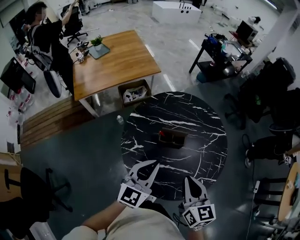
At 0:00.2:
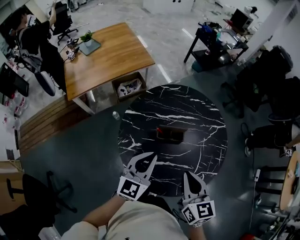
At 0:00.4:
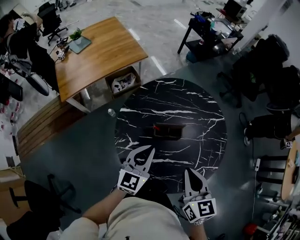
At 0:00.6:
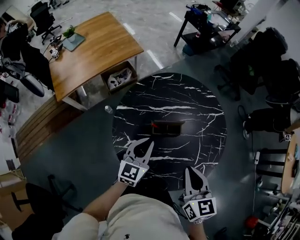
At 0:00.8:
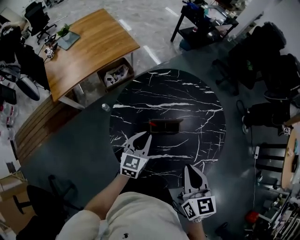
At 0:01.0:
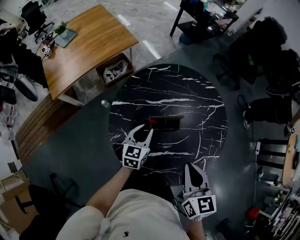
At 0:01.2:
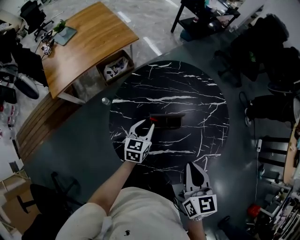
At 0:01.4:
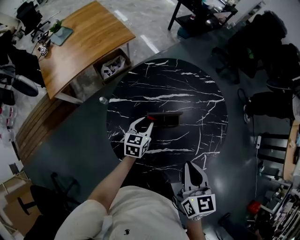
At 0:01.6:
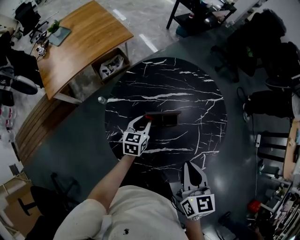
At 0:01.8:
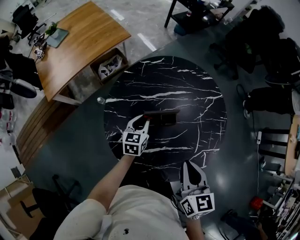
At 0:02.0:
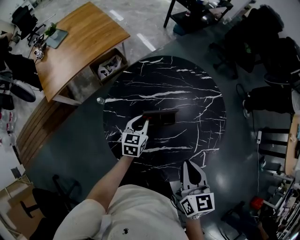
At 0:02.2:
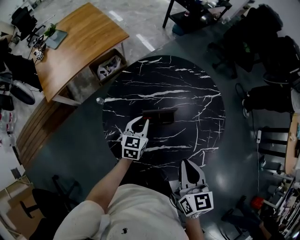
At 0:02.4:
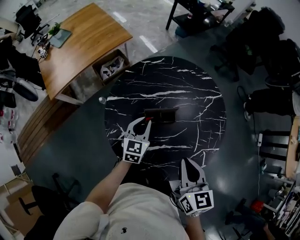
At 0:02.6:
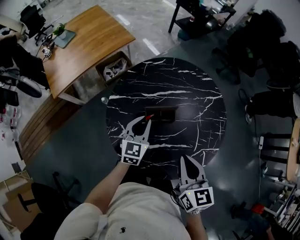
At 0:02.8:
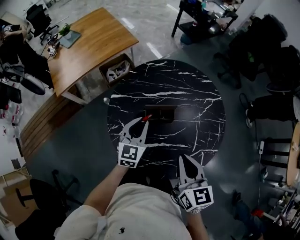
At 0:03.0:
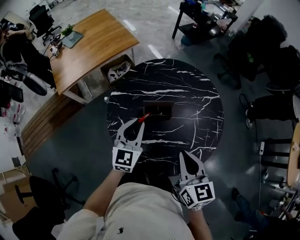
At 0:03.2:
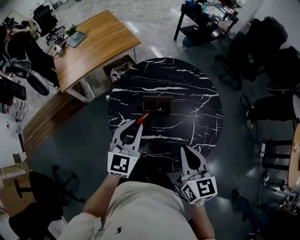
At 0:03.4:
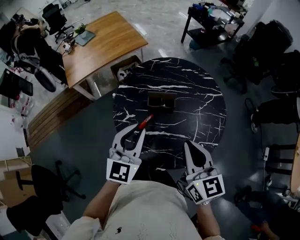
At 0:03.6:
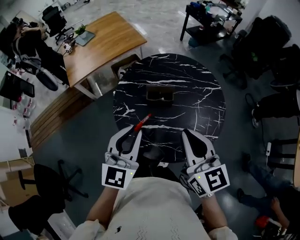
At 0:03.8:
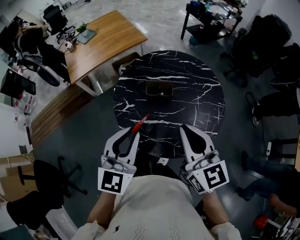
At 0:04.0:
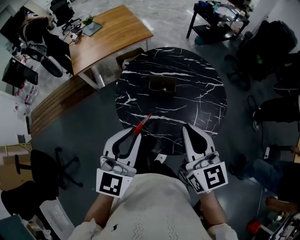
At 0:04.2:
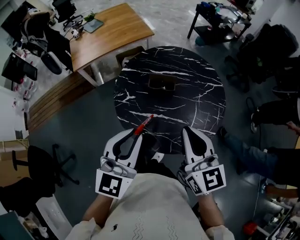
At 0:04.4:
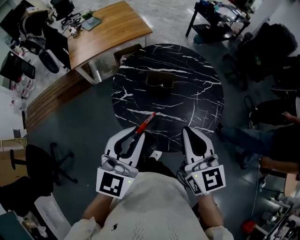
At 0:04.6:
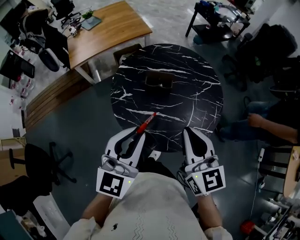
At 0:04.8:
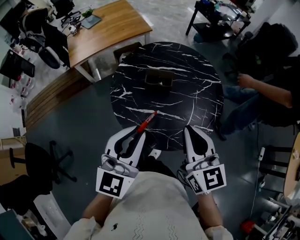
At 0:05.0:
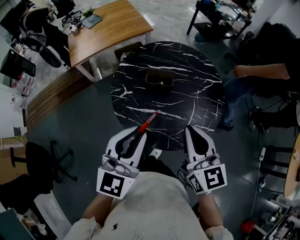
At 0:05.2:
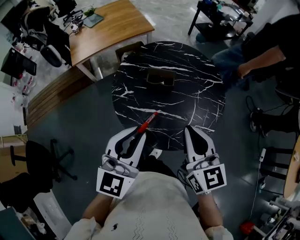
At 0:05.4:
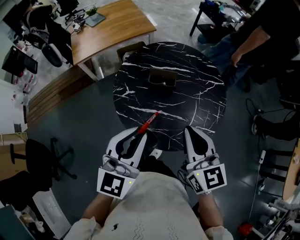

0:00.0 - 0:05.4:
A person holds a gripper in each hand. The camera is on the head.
0:00.0 - 0:01.4: The right gripper goes approximately 5 cm forward; the left gripper heads downward and forward, covering roughly 30 cm, swivels roughly 30 degrees, and opens up.
0:01.4 - 0:02.8: The left gripper is displaced upward and backward by about 15 cm, and turns by approximately 20 degrees.
0:02.8 - 0:04.0: The left gripper travels backward and upward by some 30 cm. Meanwhile the right gripper shifts about 15 cm upward and backward, and swivels some 20 degrees.
0:04.0 - 0:05.4: The grippers stay close to where they were, moving slightly.

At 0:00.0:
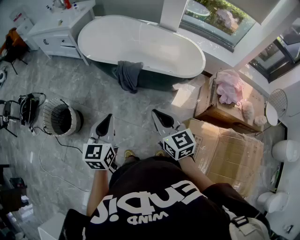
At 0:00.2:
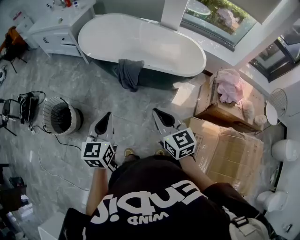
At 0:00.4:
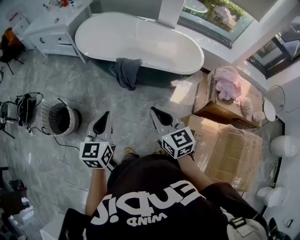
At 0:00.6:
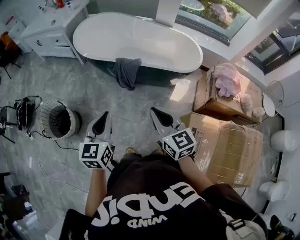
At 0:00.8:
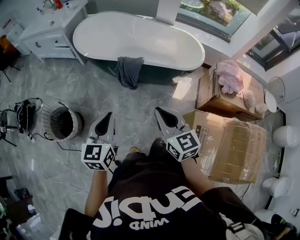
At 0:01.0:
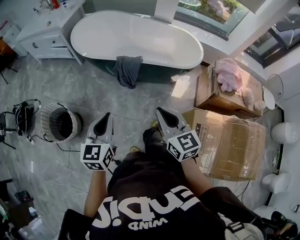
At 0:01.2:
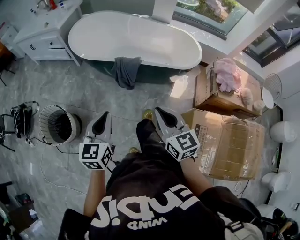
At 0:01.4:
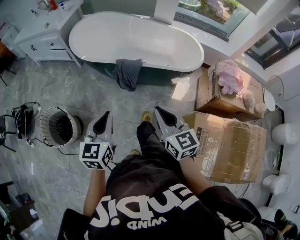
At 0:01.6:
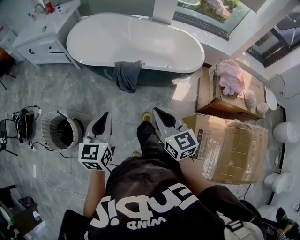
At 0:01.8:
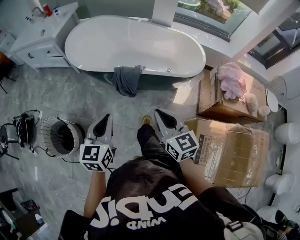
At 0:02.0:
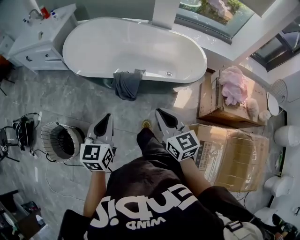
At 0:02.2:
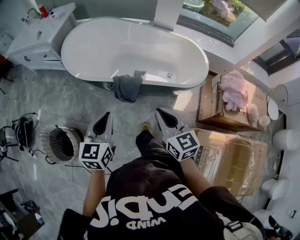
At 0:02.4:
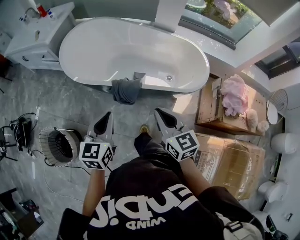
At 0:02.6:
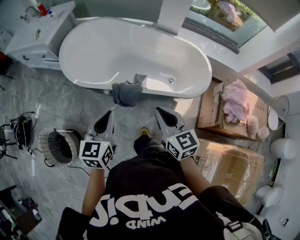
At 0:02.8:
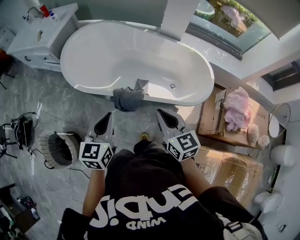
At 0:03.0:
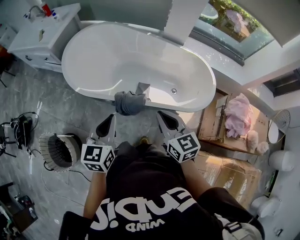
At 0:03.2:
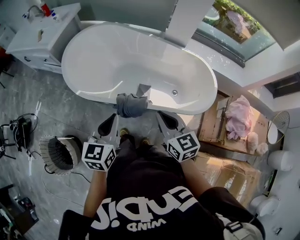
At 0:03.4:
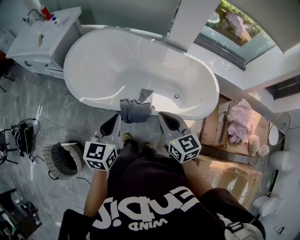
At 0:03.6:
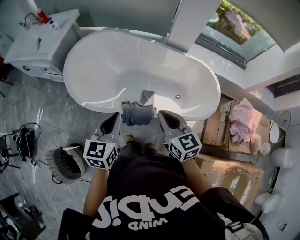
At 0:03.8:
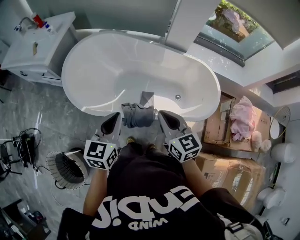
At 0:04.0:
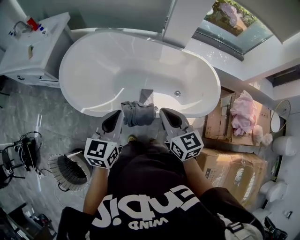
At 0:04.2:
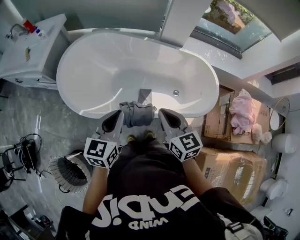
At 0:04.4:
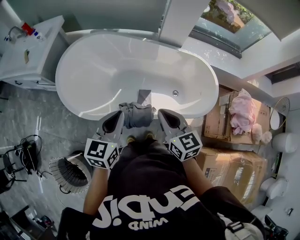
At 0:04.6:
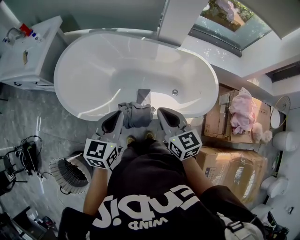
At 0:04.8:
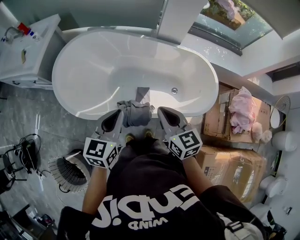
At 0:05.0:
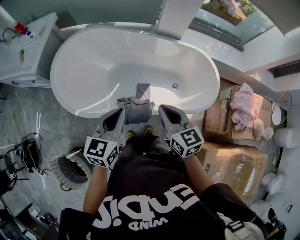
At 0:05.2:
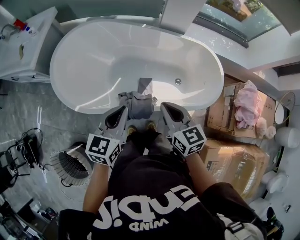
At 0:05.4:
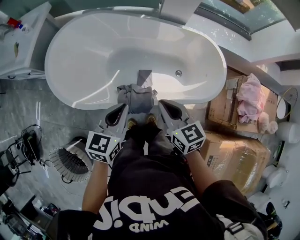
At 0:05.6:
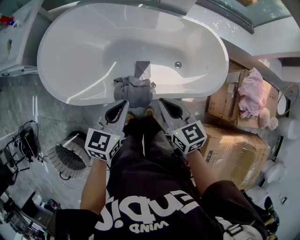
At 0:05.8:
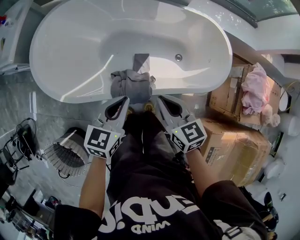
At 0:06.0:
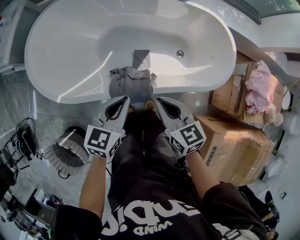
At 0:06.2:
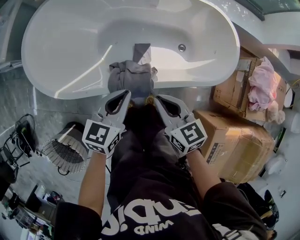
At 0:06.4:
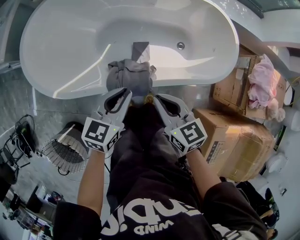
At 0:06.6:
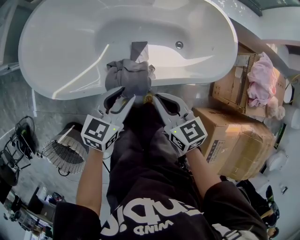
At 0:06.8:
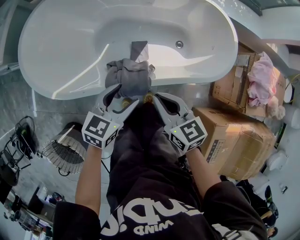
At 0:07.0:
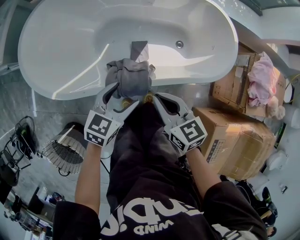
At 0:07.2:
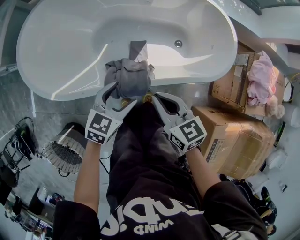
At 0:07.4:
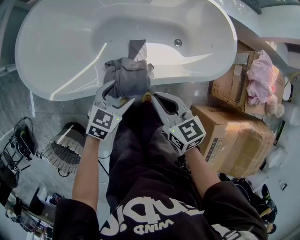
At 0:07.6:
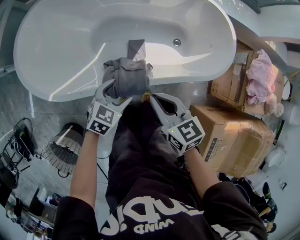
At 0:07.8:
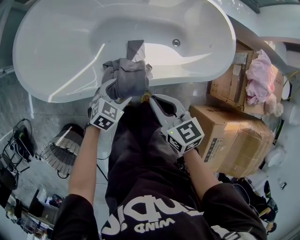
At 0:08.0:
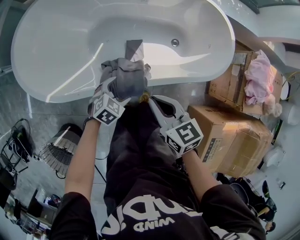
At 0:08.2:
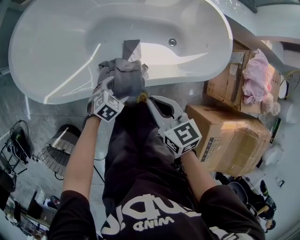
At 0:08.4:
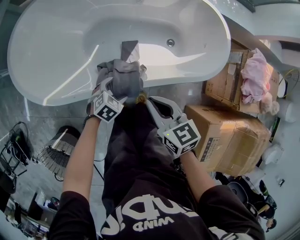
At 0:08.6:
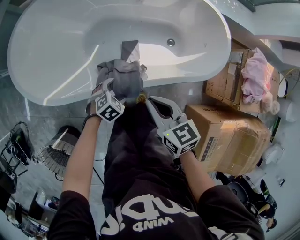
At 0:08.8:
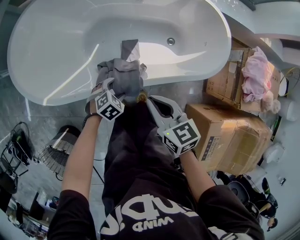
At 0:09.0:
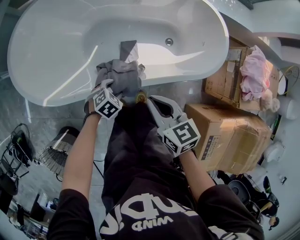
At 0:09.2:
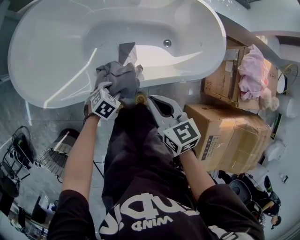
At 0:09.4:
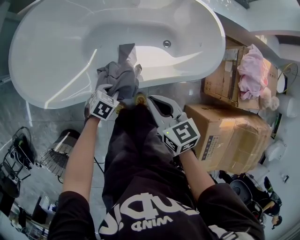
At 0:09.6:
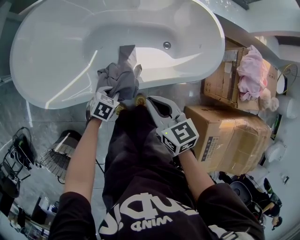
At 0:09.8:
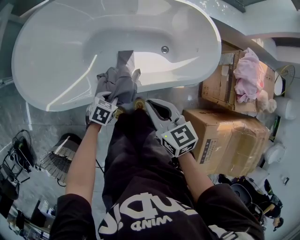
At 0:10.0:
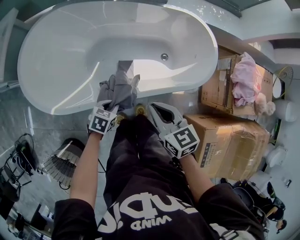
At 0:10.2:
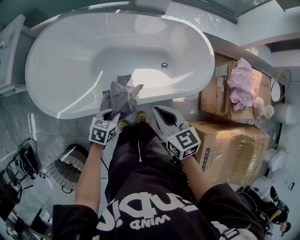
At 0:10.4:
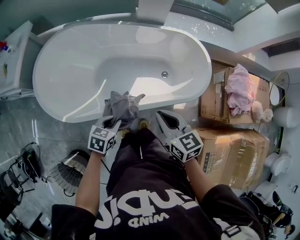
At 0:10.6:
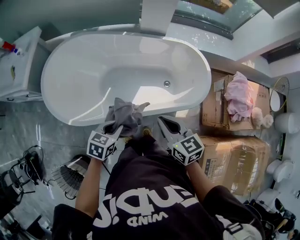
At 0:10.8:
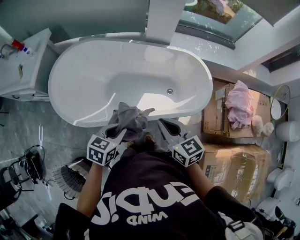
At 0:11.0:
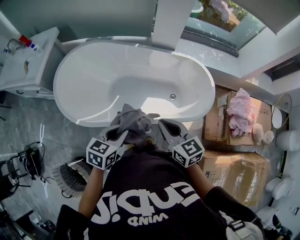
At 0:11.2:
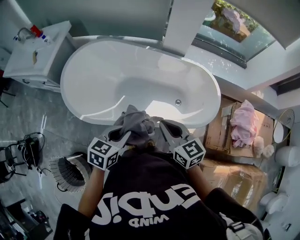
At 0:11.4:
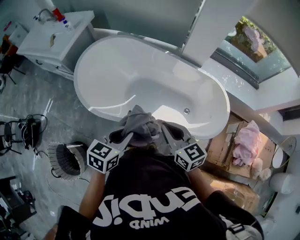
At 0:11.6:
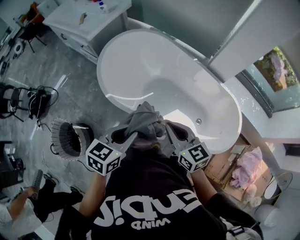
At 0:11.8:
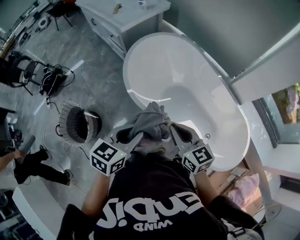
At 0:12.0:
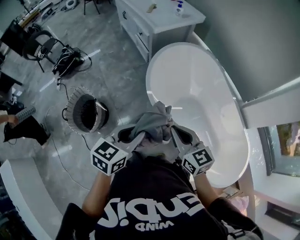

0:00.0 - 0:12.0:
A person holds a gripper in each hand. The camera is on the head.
0:00.0 - 0:01.6: The left gripper moves forward and to the left, roughly 10 cm. Meanwhile the right gripper goes approximately 5 cm forward.
0:01.6 - 0:03.0: The two grippers go roughly 30 cm forward.
0:03.0 - 0:04.4: The left gripper heads forward, covering approximately 15 cm. Meanwhile the right gripper travels forward and to the left by approximately 15 cm.
0:04.4 - 0:06.0: Both grippers move downward, about 15 cm.
0:06.0 - 0:07.6: The left gripper travels downward by roughly 15 cm, rotates about 30 degrees, and opens.
0:07.6 - 0:09.0: The left gripper goes roughly 10 cm downward, and rotates some 20 degrees.
0:09.0 - 0:10.4: The left gripper is displaced upward by approximately 20 cm, changes its angle by roughly 30 degrees, and closes. Meanwhile the right gripper shifts roughly 10 cm upward.
0:10.4 - 0:12.0: The right gripper shifts by about 30 cm, and turns by about 60 degrees; the left gripper is displaced upward by approximately 25 cm, and turns by approximately 60 degrees.

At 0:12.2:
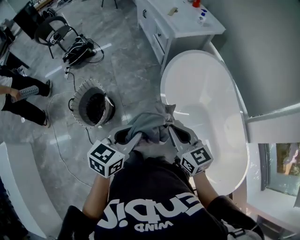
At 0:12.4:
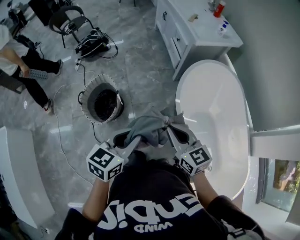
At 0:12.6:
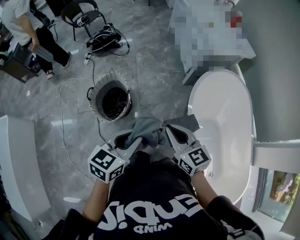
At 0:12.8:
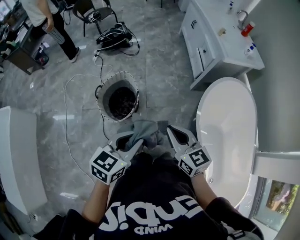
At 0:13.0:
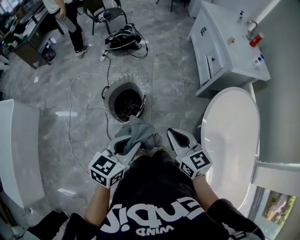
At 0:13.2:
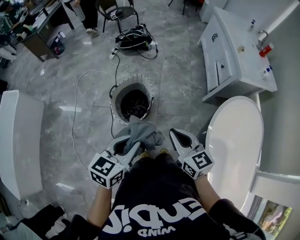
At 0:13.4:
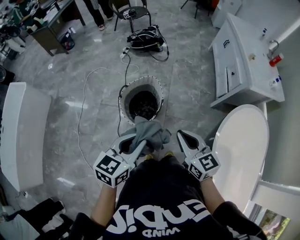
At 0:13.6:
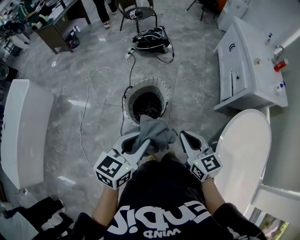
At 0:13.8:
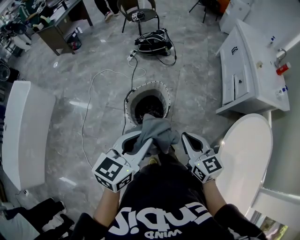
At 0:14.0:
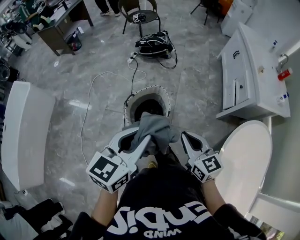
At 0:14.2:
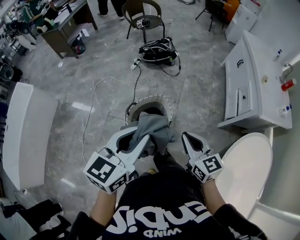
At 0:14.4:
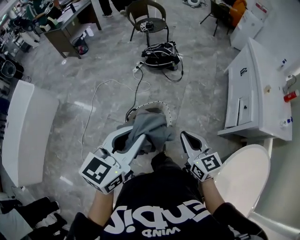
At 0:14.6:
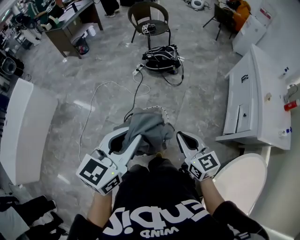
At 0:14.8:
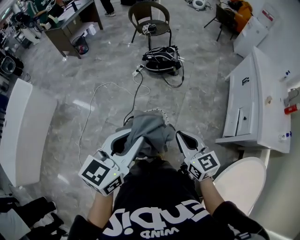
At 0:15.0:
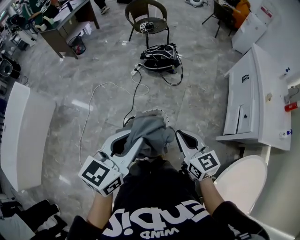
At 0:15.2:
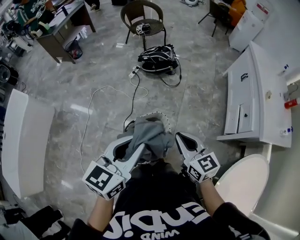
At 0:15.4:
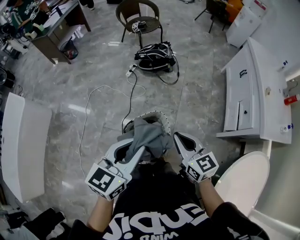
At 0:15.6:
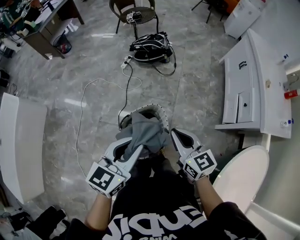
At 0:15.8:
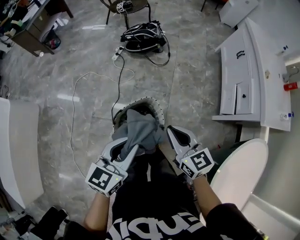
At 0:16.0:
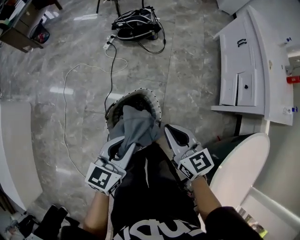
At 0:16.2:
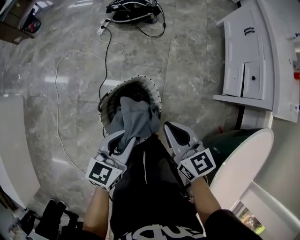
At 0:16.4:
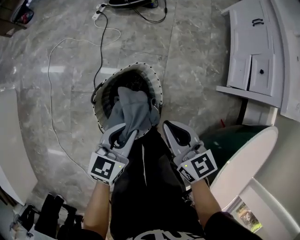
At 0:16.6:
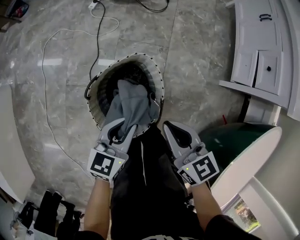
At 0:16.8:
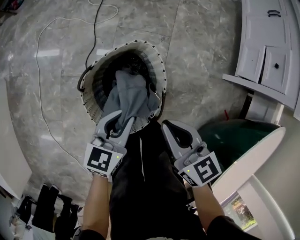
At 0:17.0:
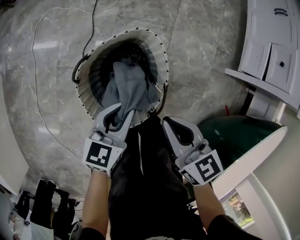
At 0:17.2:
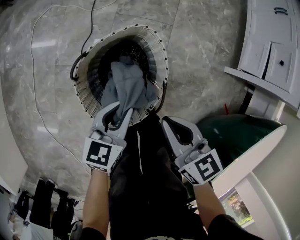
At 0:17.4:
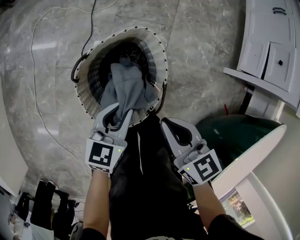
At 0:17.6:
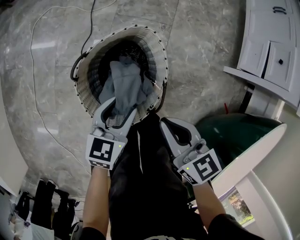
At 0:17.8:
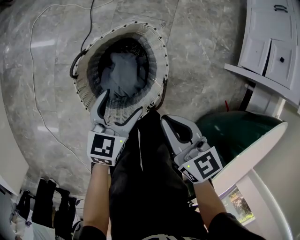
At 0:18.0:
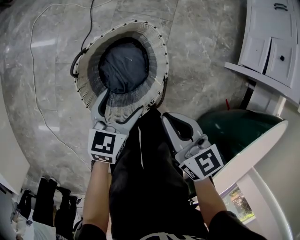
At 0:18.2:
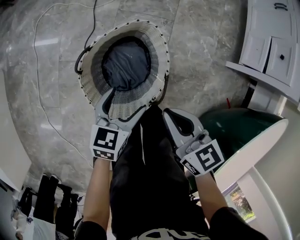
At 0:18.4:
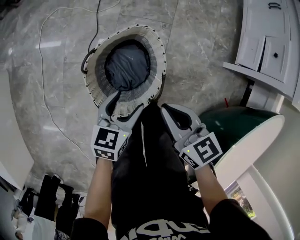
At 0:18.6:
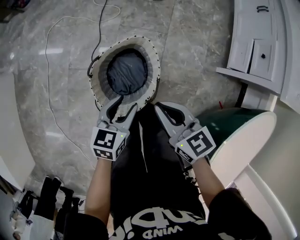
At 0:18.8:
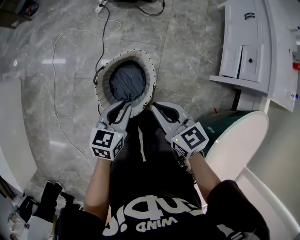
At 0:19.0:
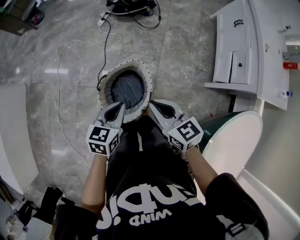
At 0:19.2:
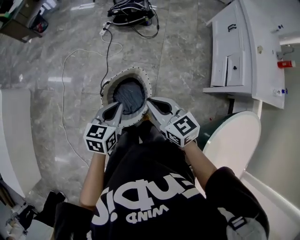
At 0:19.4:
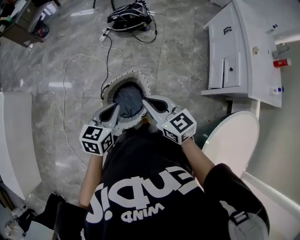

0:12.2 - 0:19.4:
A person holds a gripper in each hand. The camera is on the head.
0:12.2 - 0:13.6: The left gripper moves approximately 35 cm, and turns by about 30 degrees; the right gripper moves about 35 cm, and swivels approximately 30 degrees.
0:13.6 - 0:15.0: Both grippers travel together forward, approximately 25 cm.
0:15.0 - 0:16.6: The right gripper goes approximately 30 cm downward. Meanwhile the left gripper heads downward, covering approximately 40 cm, and rotates approximately 20 degrees.
0:16.6 - 0:18.0: The two grippers go approximately 10 cm downward. The left gripper opens.
0:18.0 - 0:19.4: The two grippers go about 30 cm upward. The left gripper closes up; the right gripper rotates approximately 20 degrees.
